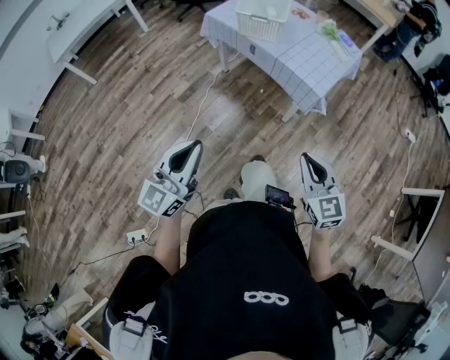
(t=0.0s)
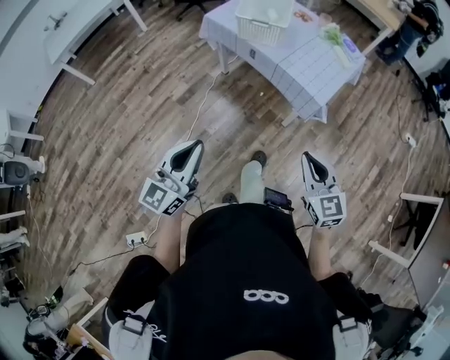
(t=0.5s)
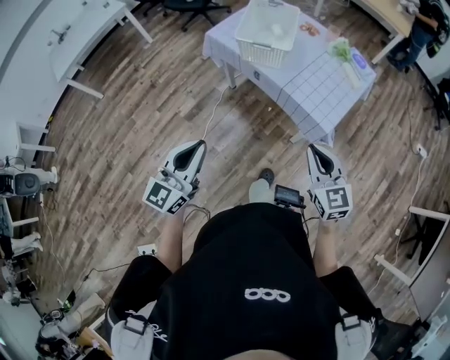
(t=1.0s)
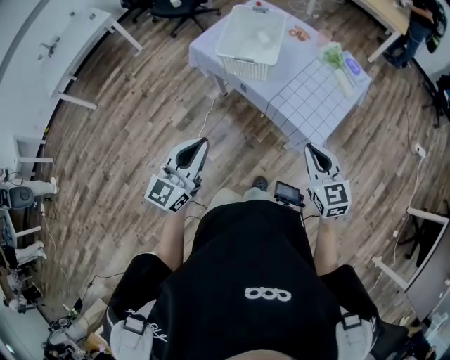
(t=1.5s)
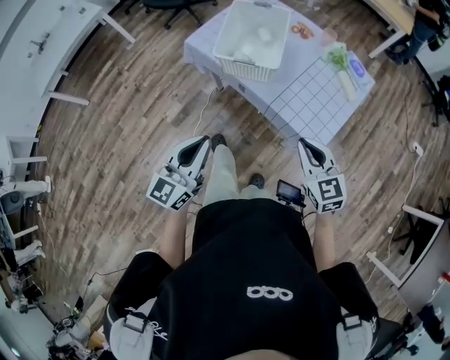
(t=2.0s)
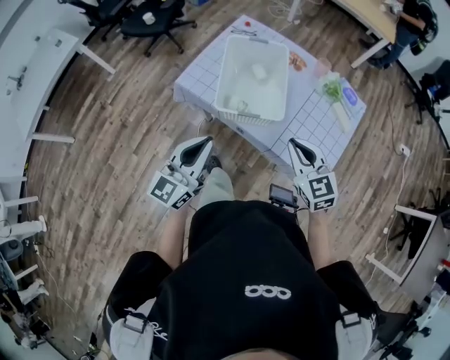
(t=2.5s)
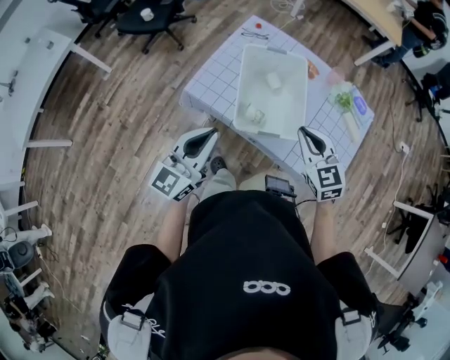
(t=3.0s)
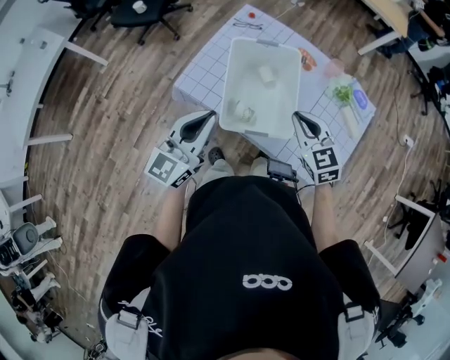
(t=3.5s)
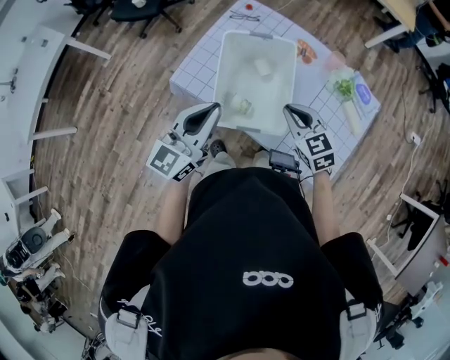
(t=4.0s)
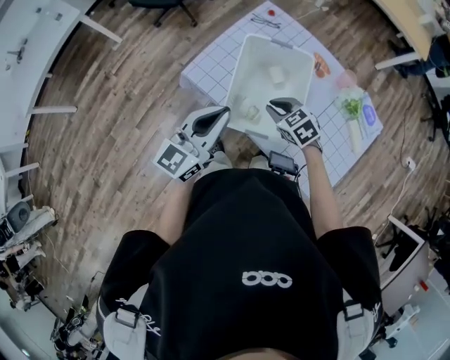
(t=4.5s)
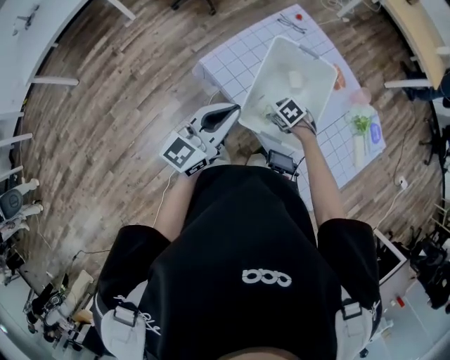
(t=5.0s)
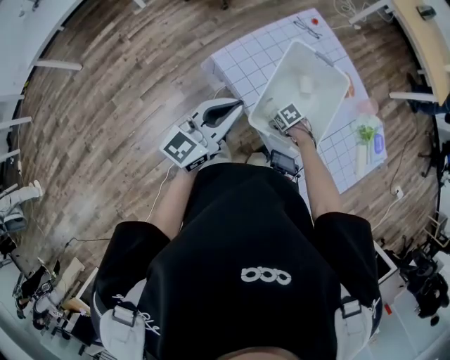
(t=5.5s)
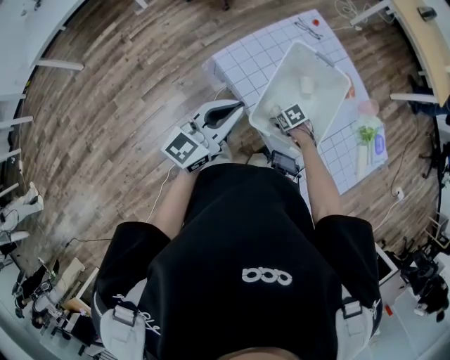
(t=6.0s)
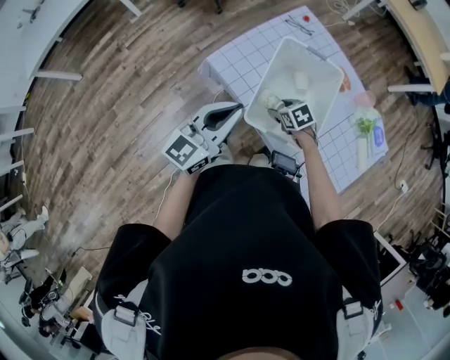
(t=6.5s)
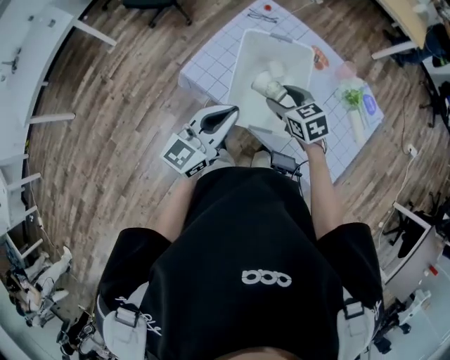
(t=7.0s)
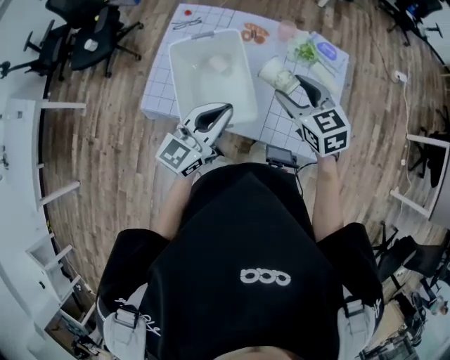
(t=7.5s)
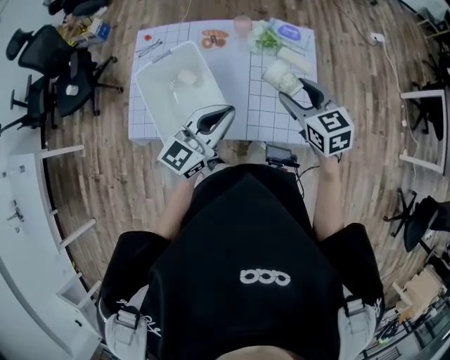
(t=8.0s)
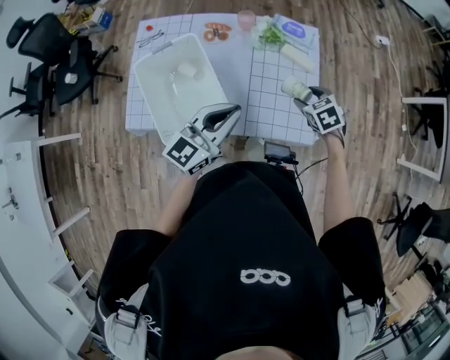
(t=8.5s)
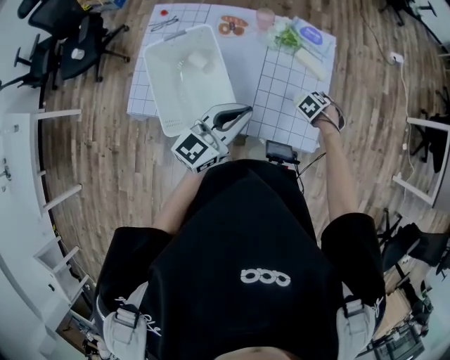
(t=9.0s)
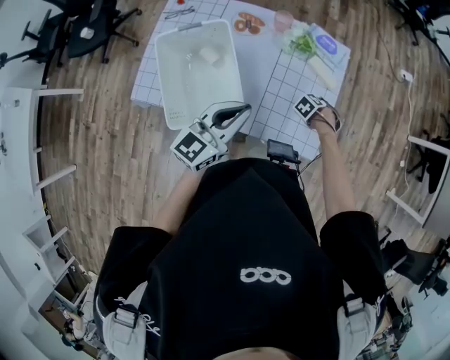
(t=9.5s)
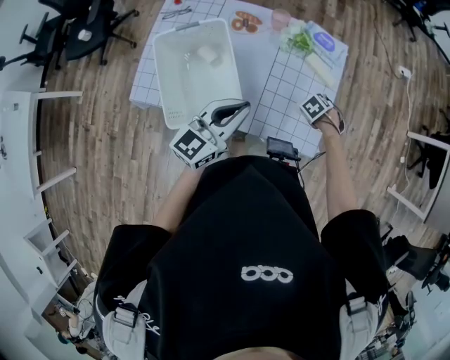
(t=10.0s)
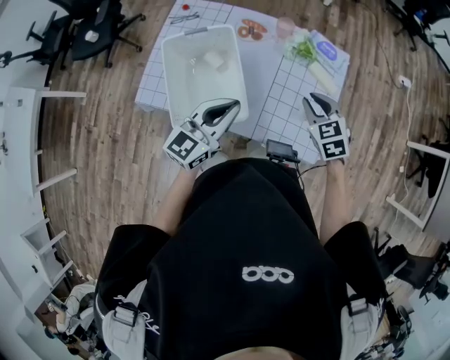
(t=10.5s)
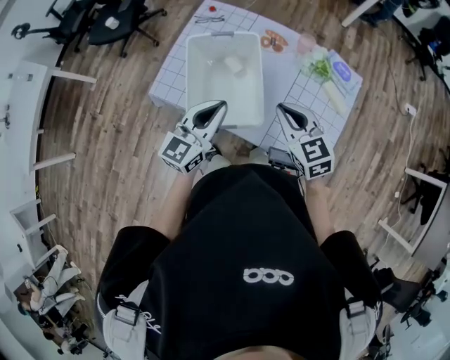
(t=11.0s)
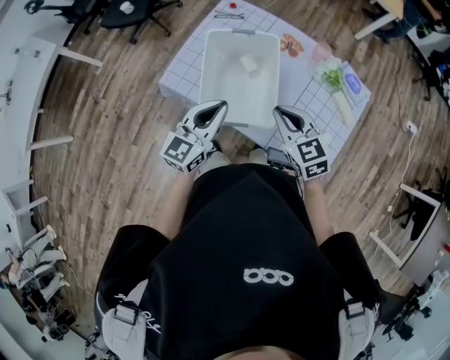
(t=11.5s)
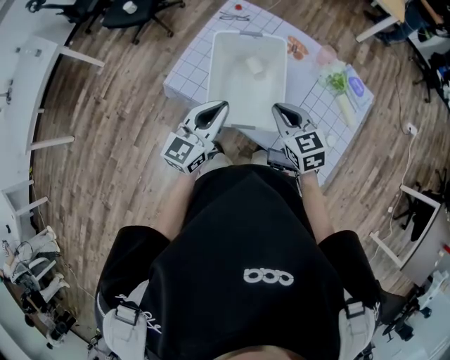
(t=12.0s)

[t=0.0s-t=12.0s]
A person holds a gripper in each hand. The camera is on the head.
t=0.0s to t=2.0s: The pair of grippers is taken forward, about 40 cm.
t=2.0s to t=4.0s: The grippers both shift forward by roughly 35 cm.
t=4.0s to t=6.0s: The left gripper shifts by roughly 10 cm. The right gripper travels downward by about 25 cm, points its fingers about 30 degrees further downward, and opens.
t=6.0s to t=8.0s: The left gripper ends up about 30 cm from where it was, and rotates some 50 degrees. The right gripper is displaced upward by approximately 35 cm, and tips its fingers upward by about 40 degrees.
t=8.0s to t=10.0s: The right gripper moves downward, some 30 cm, and angles its fingers downward, by roughly 50 degrees.
t=10.0s to t=12.0s: The left gripper ends up approximately 20 cm from where it was, and swivels roughly 30 degrees. The right gripper shifts by roughly 40 cm, points its fingers approximately 50 degrees further upward, and closes its fingers.

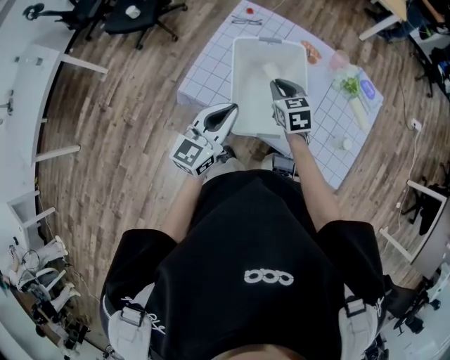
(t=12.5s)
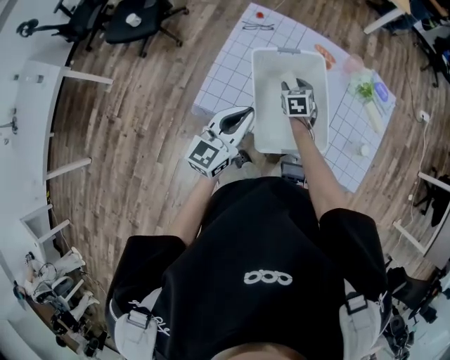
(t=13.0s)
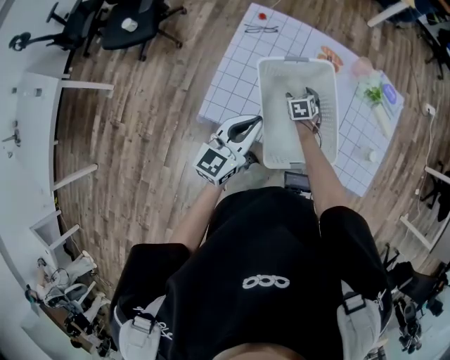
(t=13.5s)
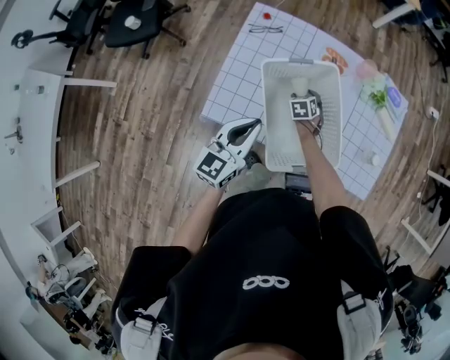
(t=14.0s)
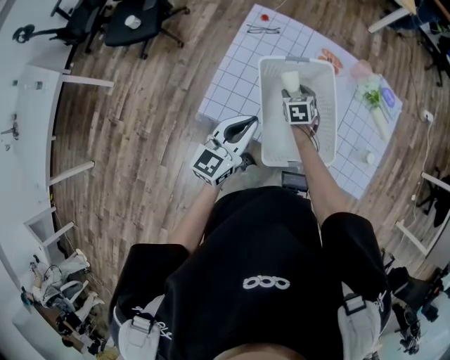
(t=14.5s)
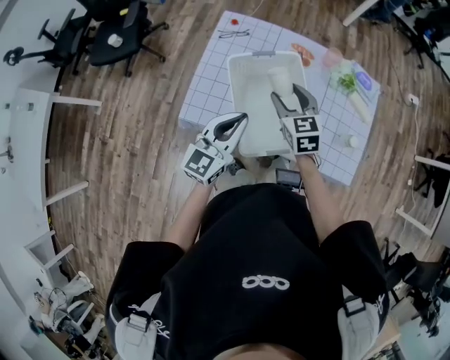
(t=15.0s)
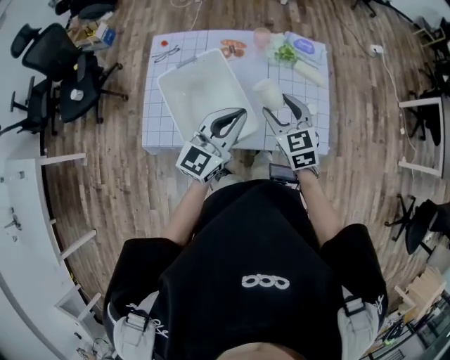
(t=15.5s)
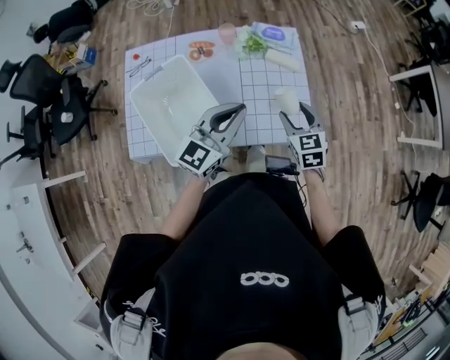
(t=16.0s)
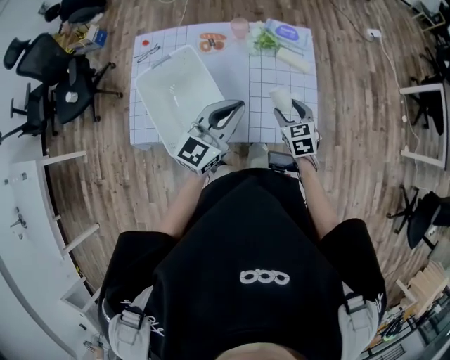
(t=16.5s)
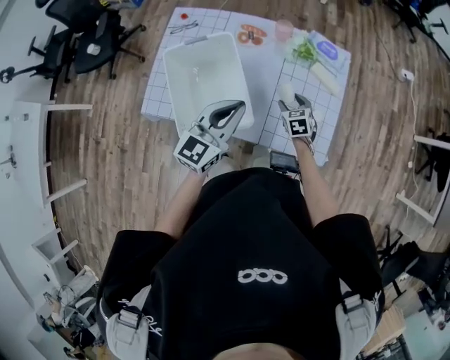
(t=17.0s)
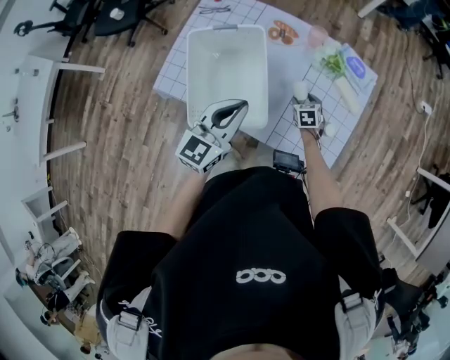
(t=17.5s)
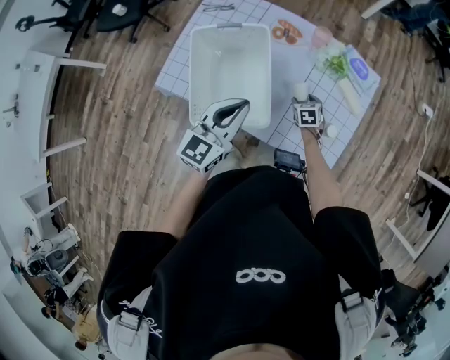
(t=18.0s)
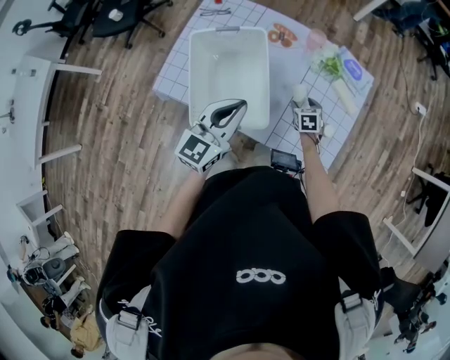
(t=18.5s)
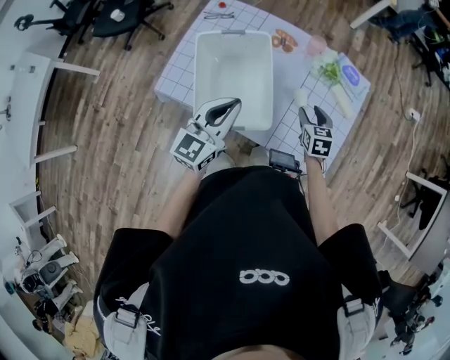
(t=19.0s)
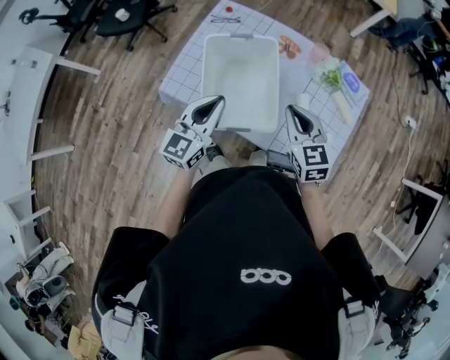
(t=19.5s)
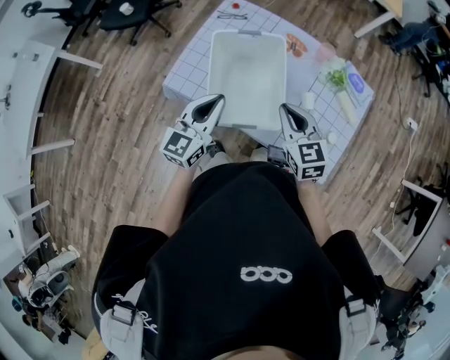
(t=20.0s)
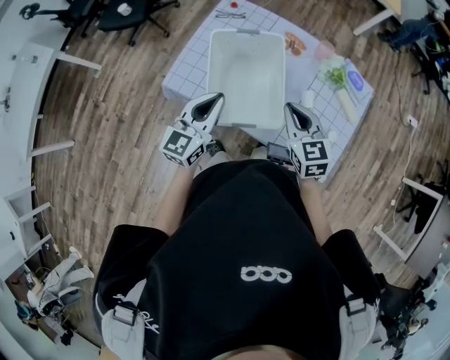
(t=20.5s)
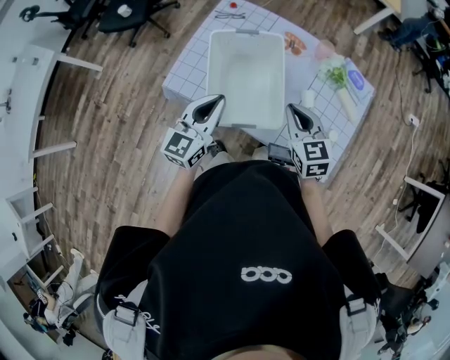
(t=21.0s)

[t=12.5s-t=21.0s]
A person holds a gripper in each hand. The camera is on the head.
t=12.5s to t=14.5s: The right gripper heads downward and forward, covering about 15 cm, changes its angle by approximately 20 degrees, and opens. The left gripper is displaced to the left and forward by about 10 cm.
t=14.5s to t=16.5s: The left gripper shifts by about 35 cm, and swivels some 30 degrees, while the right gripper ends up about 40 cm from where it was.
t=16.5s to t=19.0s: The right gripper moves forward and to the left, some 10 cm, and goes downward and returns, roughly 20 cm each way, while the left gripper is displaced to the left by some 15 cm, and swivels about 30 degrees.
t=19.0s to t=21.0s: The left gripper is displaced to the left by roughly 10 cm. Meanwhile the right gripper heads upward and to the left, covering some 20 cm, swivels roughly 20 degrees, and closes its fingers.

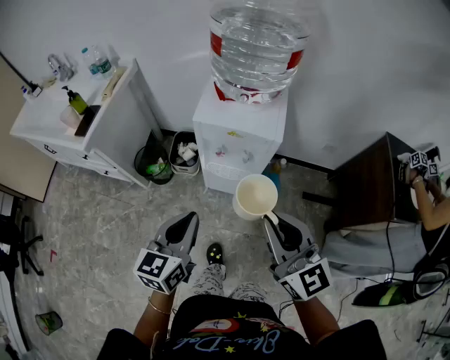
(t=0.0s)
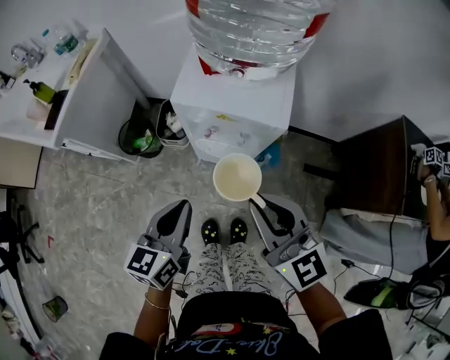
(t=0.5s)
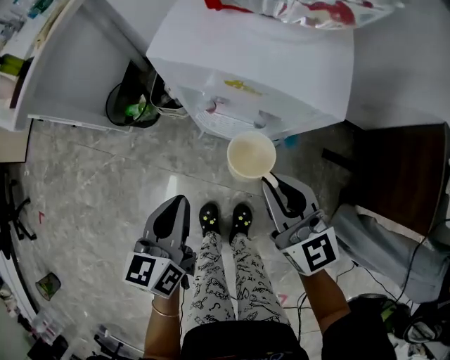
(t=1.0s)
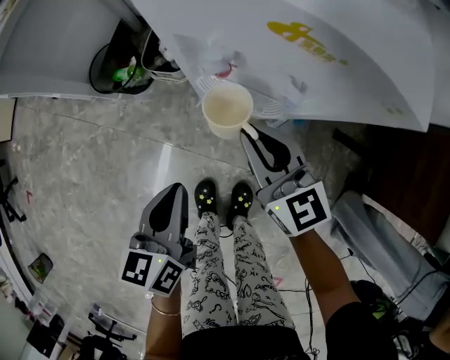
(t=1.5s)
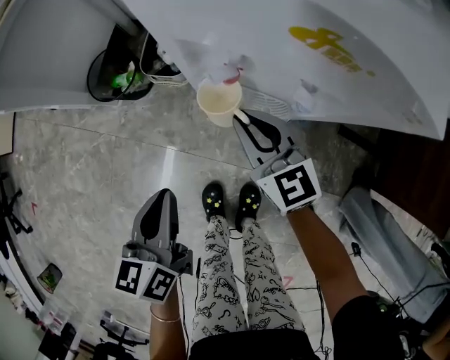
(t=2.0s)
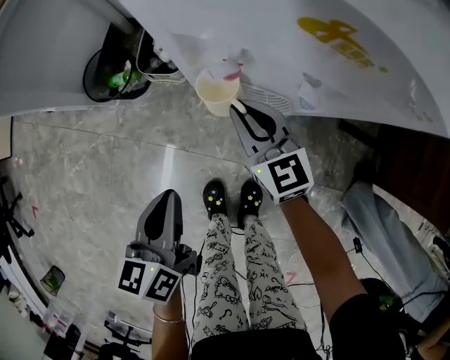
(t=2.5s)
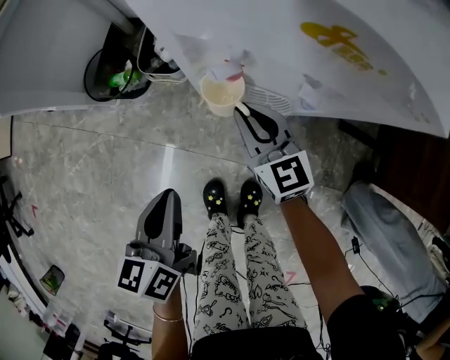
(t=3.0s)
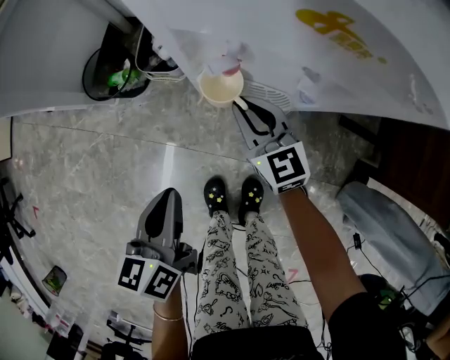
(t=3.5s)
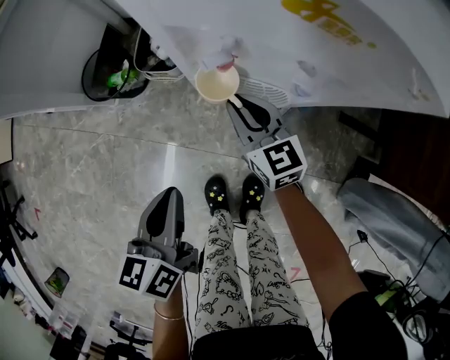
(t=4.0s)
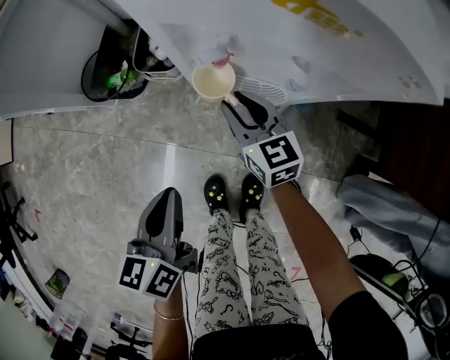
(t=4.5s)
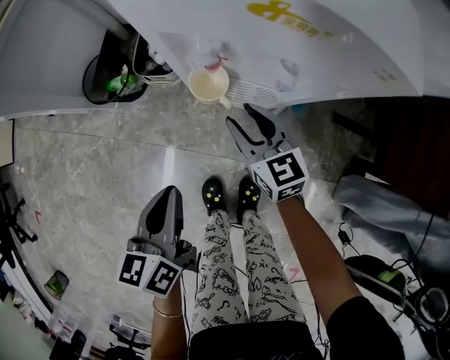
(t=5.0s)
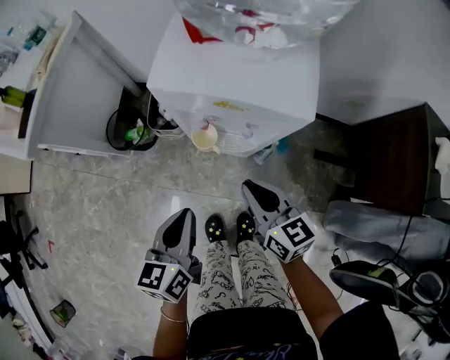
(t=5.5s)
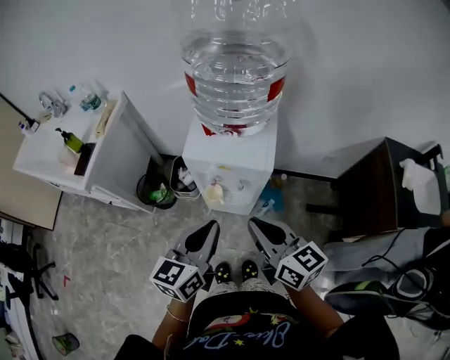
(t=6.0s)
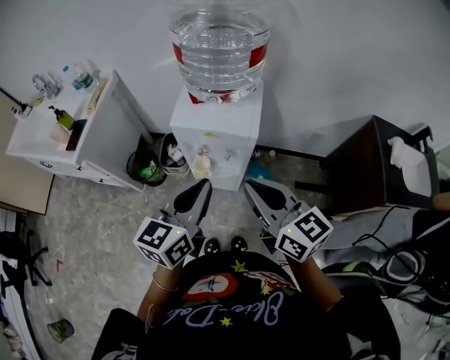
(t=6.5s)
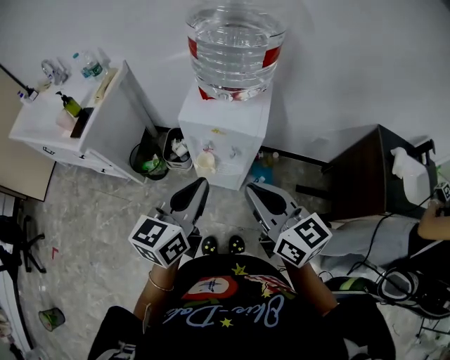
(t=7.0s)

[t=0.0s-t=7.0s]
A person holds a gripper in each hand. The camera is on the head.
t=0.0s to t=2.0s: The left gripper heads downward and forward, covering roughly 30 cm, and turns by about 30 degrees. Meanwhile the right gripper moves downward and forward, some 50 cm, and changes its angle by about 20 degrees.
t=2.0s to t=3.5s: The right gripper shifts by roughly 5 cm.
t=3.5s to t=5.0s: The right gripper opens its fingers.
t=5.0s to t=7.0s: Both grippers move upward, some 40 cm. The left gripper swivels roughly 30 degrees; the right gripper closes up.
